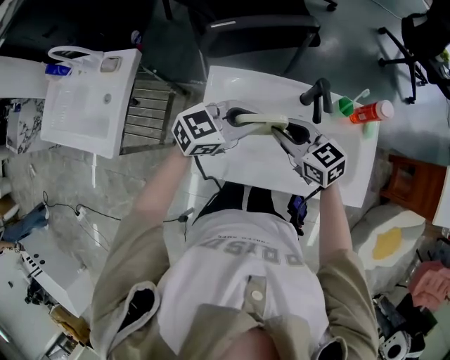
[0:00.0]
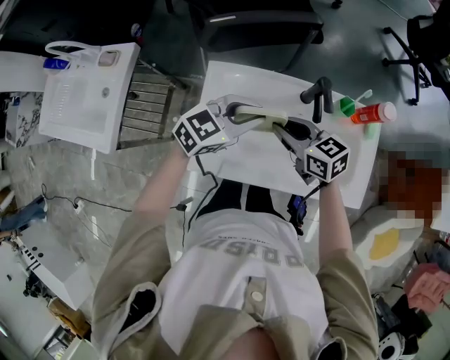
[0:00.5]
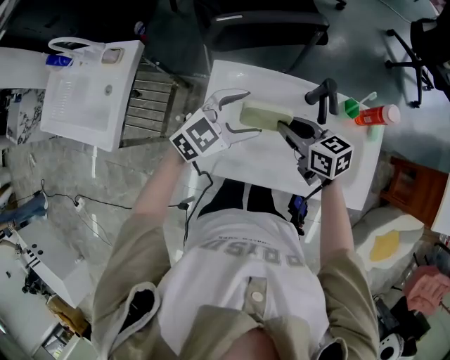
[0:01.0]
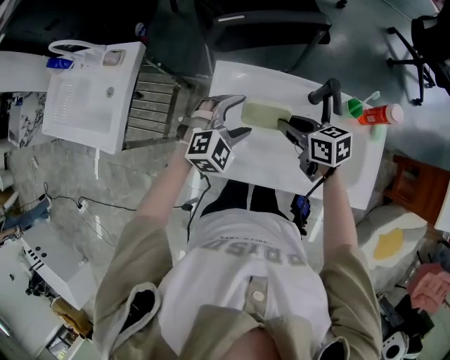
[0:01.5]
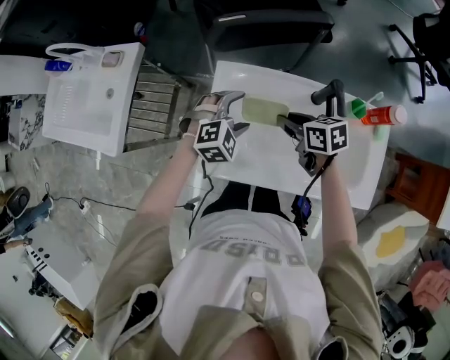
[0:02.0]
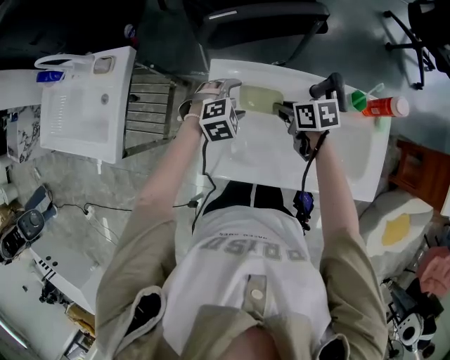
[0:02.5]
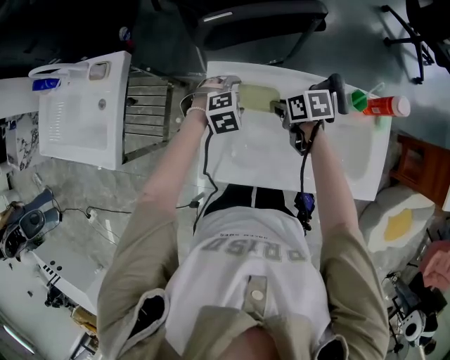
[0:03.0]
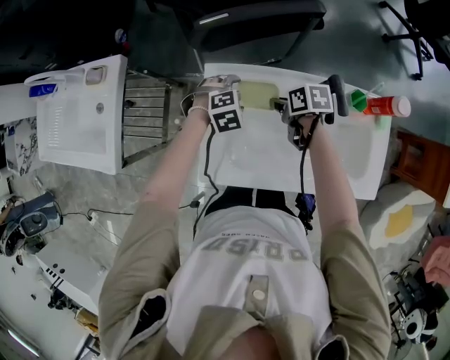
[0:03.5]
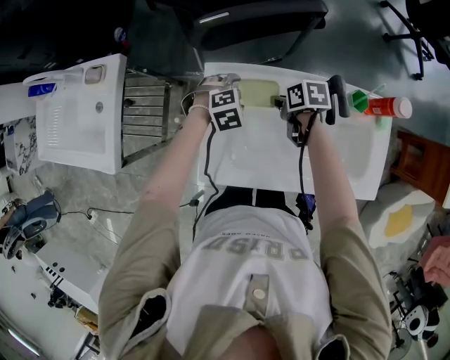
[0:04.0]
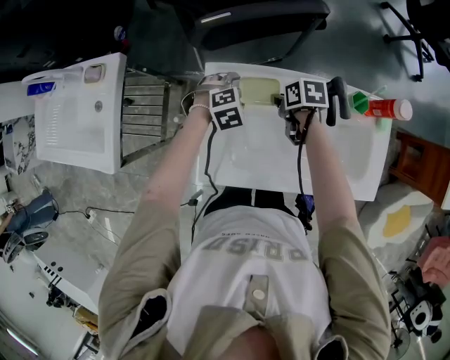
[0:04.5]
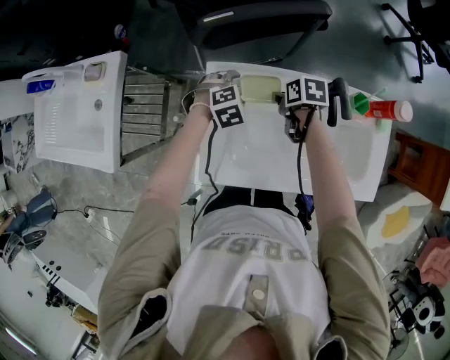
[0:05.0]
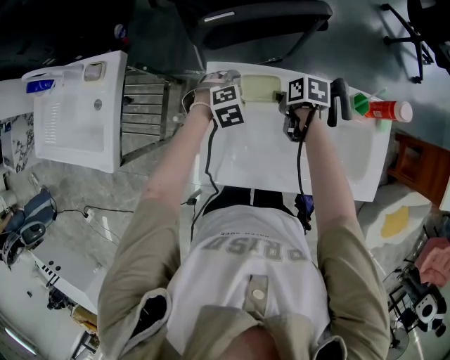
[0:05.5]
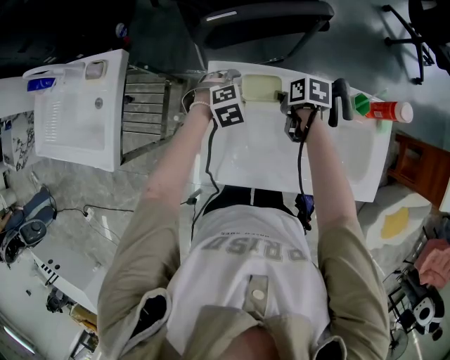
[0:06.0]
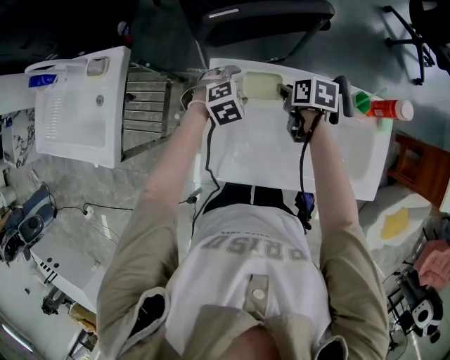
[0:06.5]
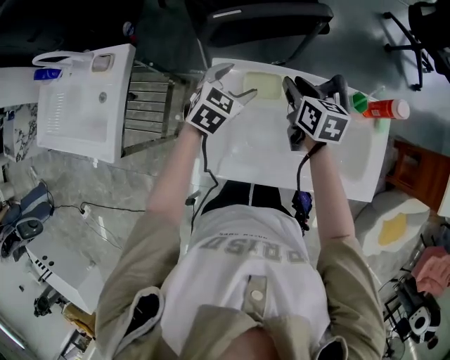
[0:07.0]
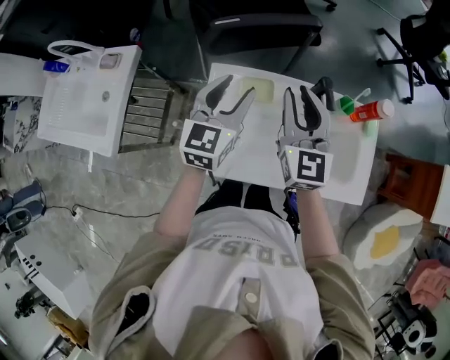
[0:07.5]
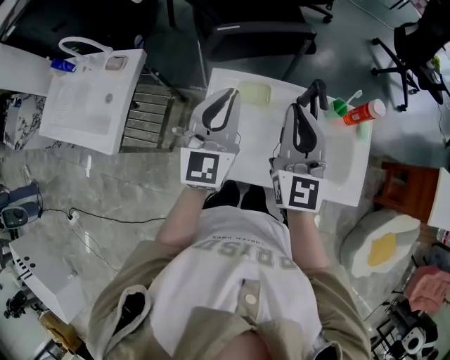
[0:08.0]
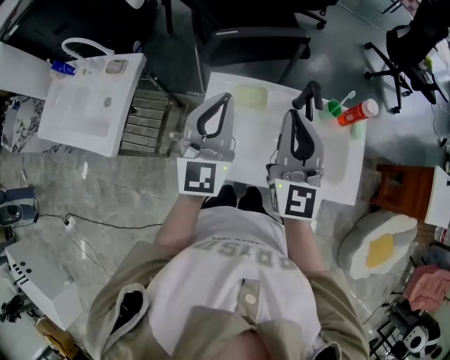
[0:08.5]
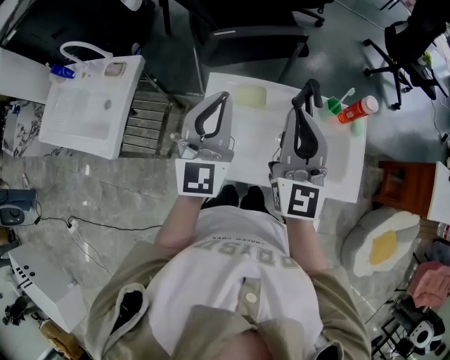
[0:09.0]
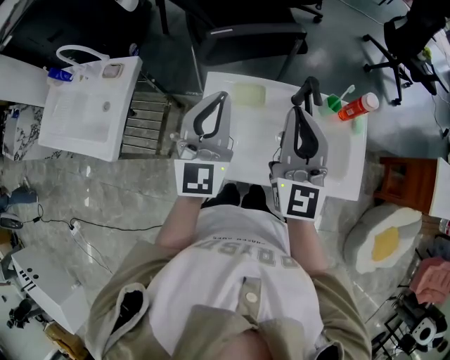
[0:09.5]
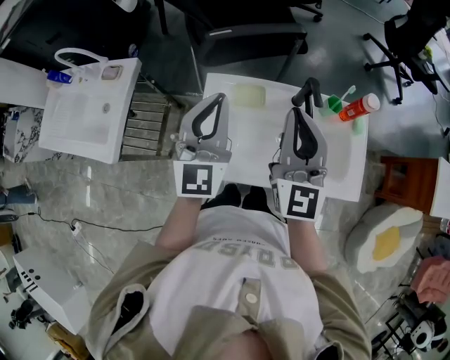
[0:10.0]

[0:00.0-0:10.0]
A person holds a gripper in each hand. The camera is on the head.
0:00.0 to 0:02.0: The right gripper shifts some 10 cm downward, and turns by roughly 30 degrees. Meanwhile the left gripper travels downward by about 15 cm, tips its fingers downward by roughly 30 degrees, and opens its fingers.
0:02.0 to 0:04.0: The grippers both shift downward and forward by some 10 cm. The right gripper rotates some 30 degrees. The left gripper rotates some 20 degrees.
0:04.0 to 0:06.0: The grippers stay close to where they were, moving slightly.
0:06.0 to 0:08.0: The two grippers go roughly 35 cm upward. The right gripper tilts its fingers some 60 degrees upward; the left gripper tilts its fingers some 70 degrees upward, and closes its fingers.
0:08.0 to 0:10.0: There are only small adjustments of the grippers.

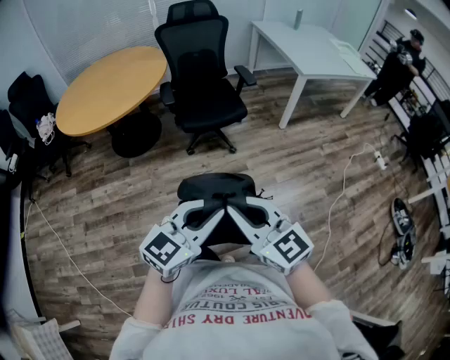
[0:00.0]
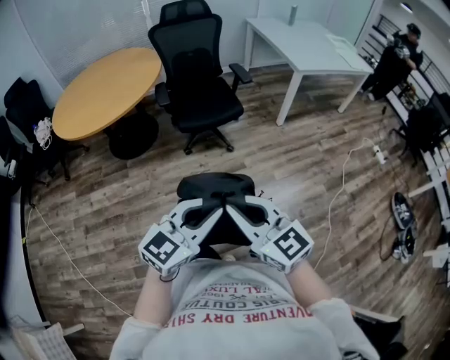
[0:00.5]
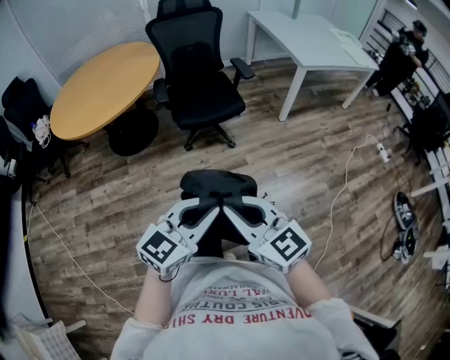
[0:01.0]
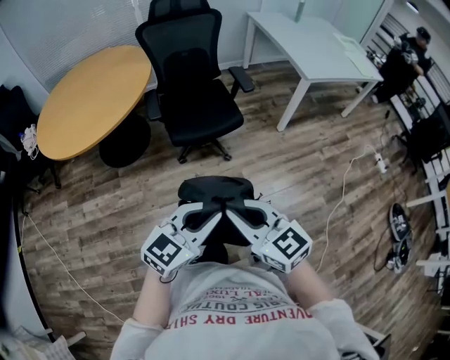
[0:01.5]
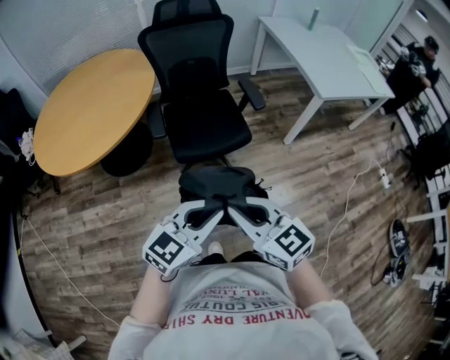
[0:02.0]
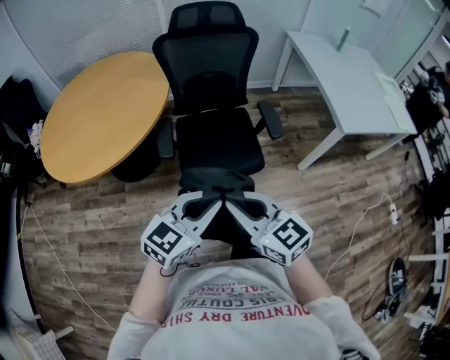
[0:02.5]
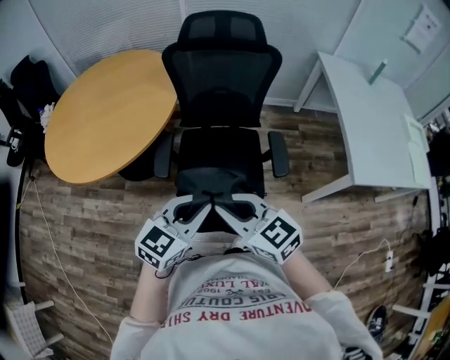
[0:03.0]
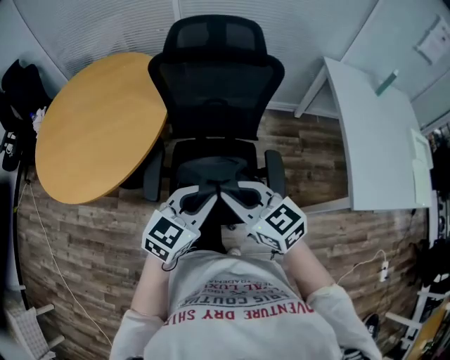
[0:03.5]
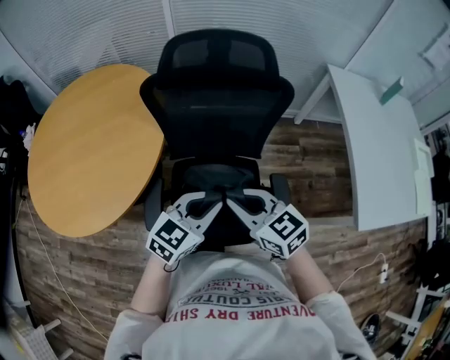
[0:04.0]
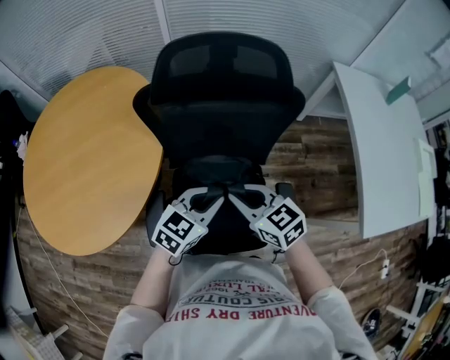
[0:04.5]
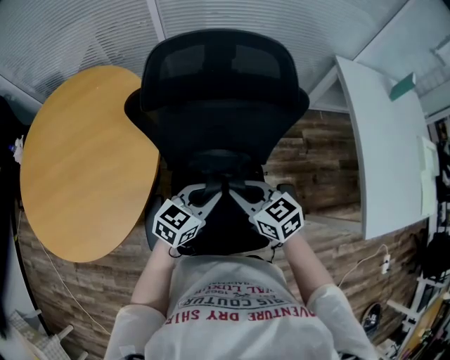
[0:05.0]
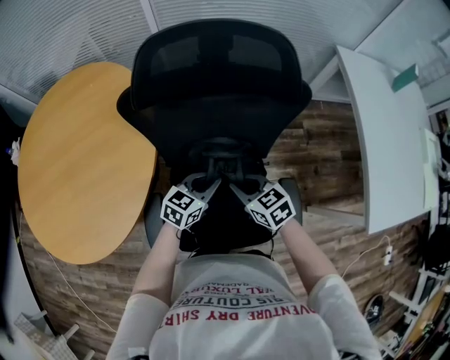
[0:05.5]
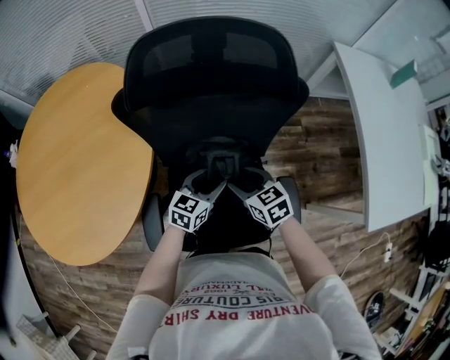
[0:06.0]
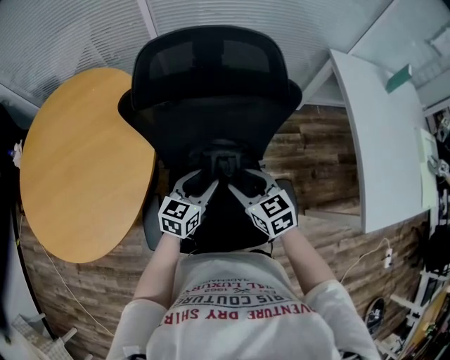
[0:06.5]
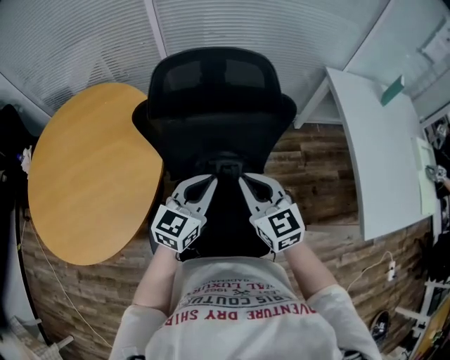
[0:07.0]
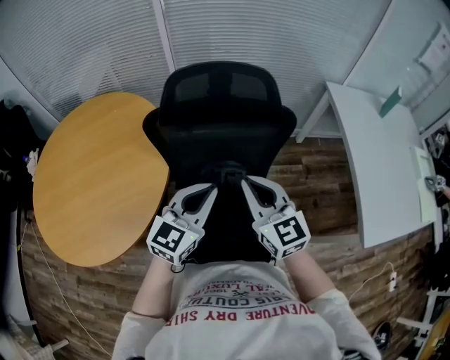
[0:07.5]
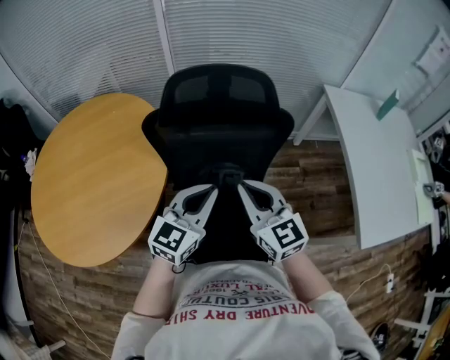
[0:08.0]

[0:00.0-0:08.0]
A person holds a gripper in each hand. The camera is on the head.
0:00.0 to 0:02.0: The grippers both shift forward by about 30 cm.
0:02.0 to 0:04.0: Both grippers are carried forward, approximately 60 cm. The left gripper turns by approximately 20 degrees, while the right gripper turns by some 20 degrees.
0:04.0 to 0:06.0: The grippers both shift downward and forward by roughly 25 cm. The left gripper opens its fingers. Meanwhile the right gripper rotates some 20 degrees, and opens its fingers.
0:06.0 to 0:08.0: Both grippers travel together upward, roughly 25 cm. The left gripper changes its angle by about 30 degrees, and closes. Meanwhile the right gripper points its fingers some 30 degrees further upward, and closes.

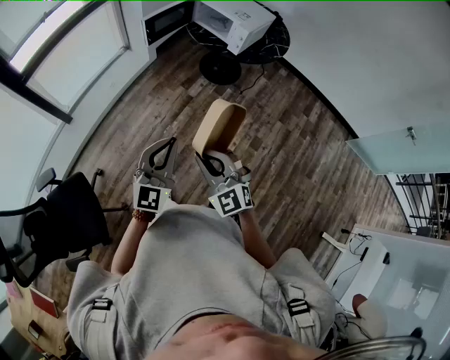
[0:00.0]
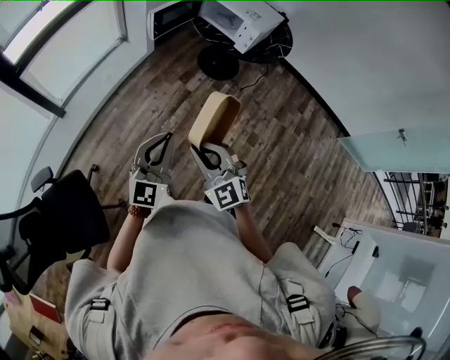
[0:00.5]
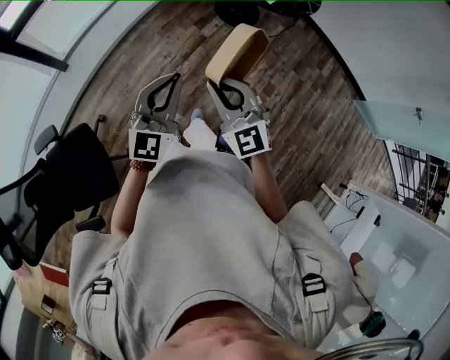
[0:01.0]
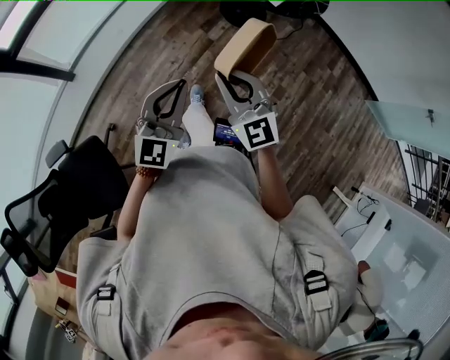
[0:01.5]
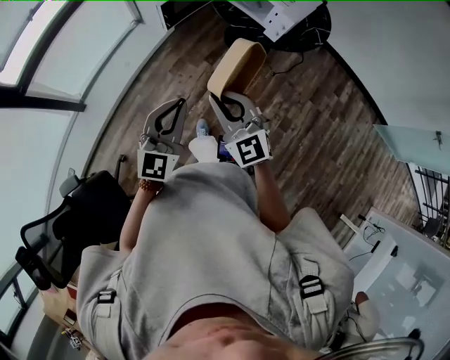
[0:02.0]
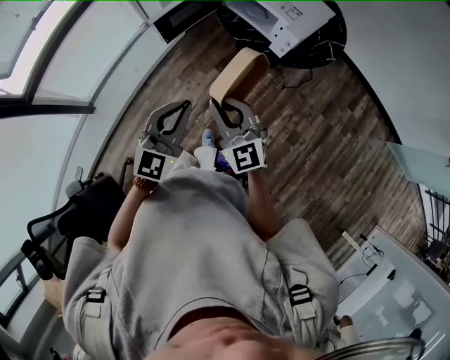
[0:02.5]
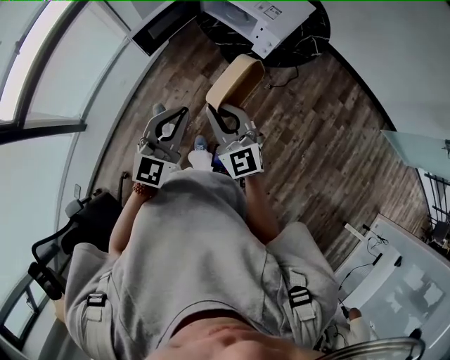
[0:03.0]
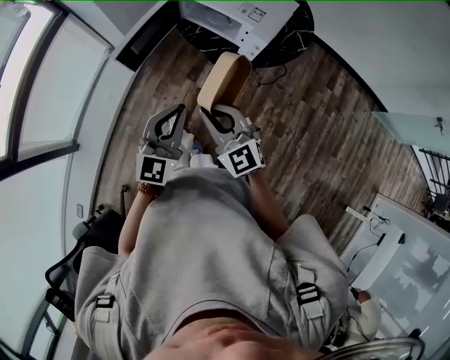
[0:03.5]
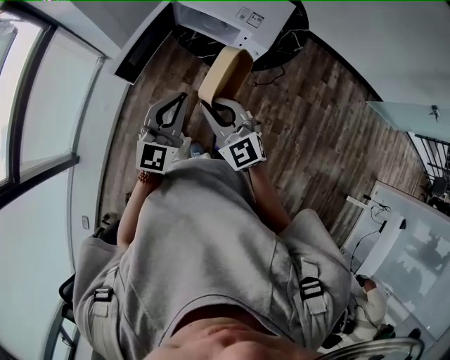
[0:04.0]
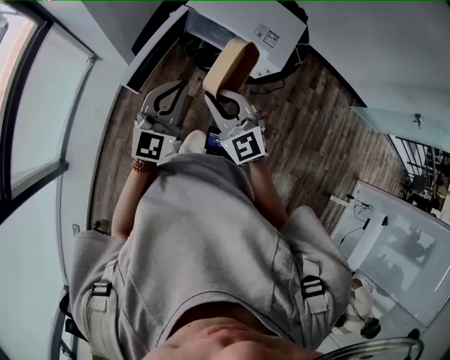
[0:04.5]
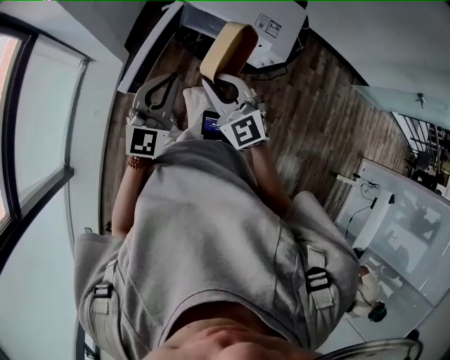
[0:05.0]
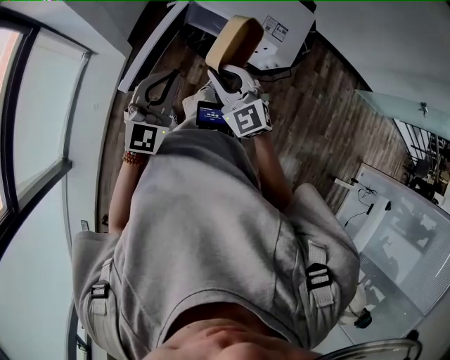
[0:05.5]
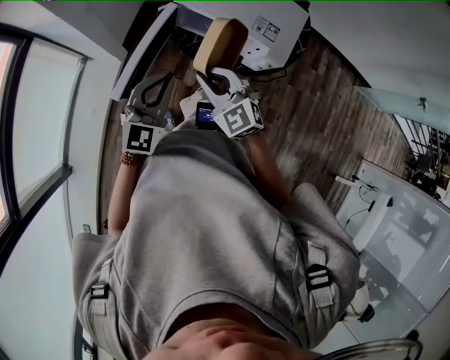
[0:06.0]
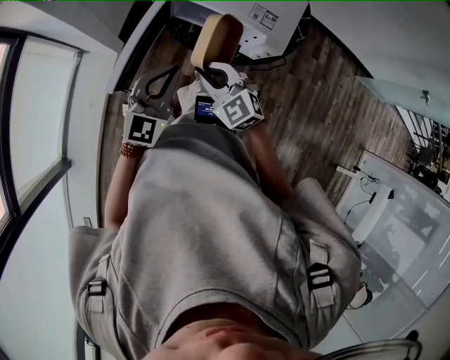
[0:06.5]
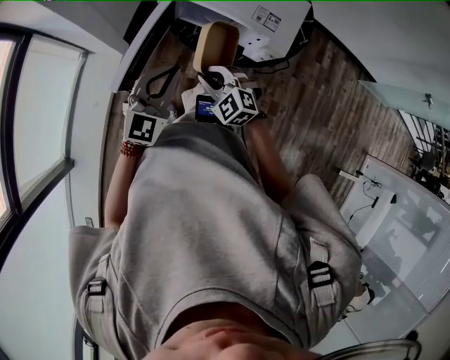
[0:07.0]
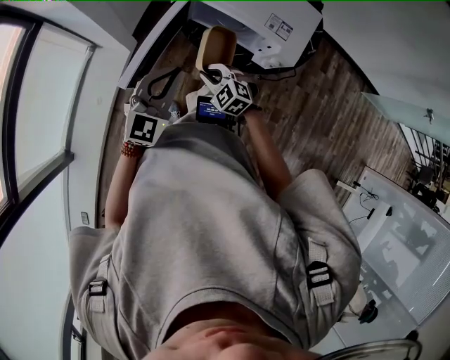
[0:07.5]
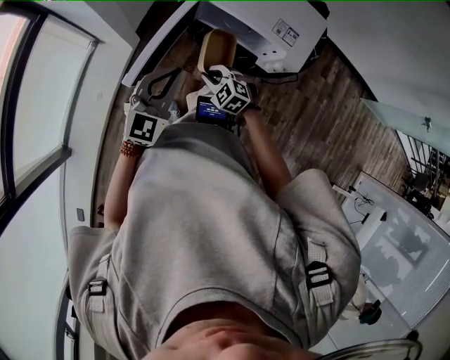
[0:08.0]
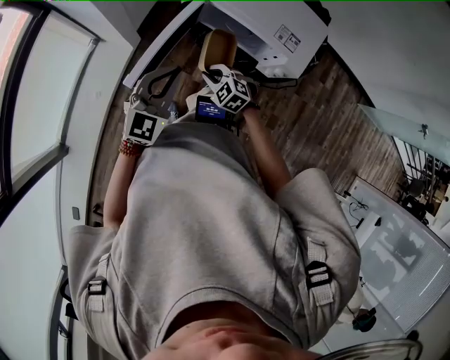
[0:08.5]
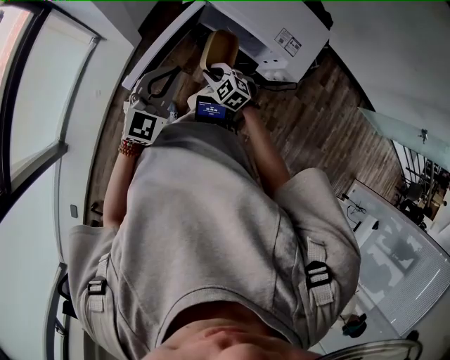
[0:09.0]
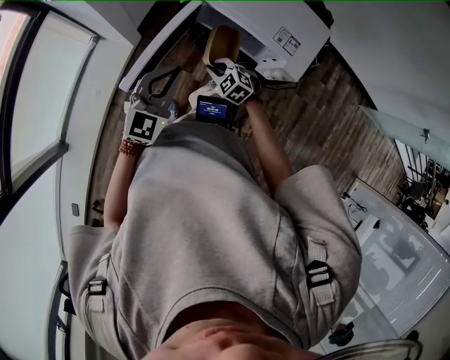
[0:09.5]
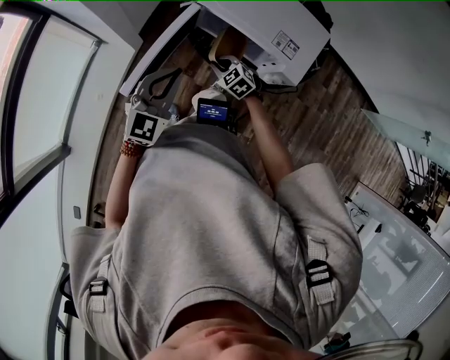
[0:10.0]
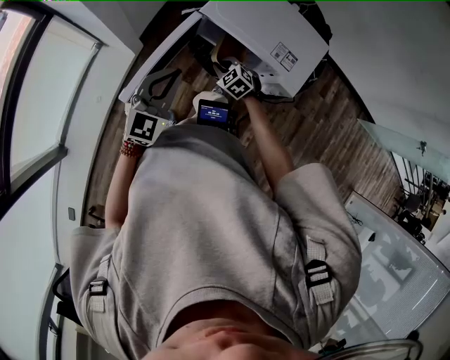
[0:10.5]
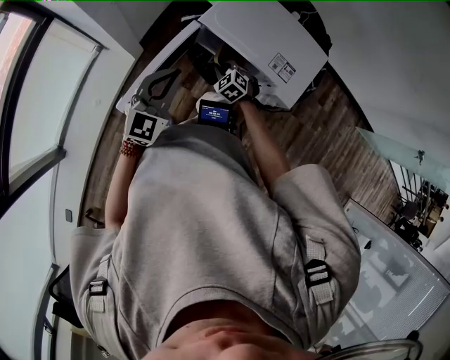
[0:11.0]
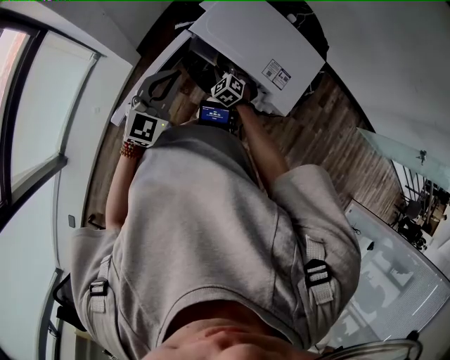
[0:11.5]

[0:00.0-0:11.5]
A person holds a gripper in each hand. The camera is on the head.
0:00.0 to 0:02.0: Both grippers travel together forward, about 25 cm.
0:02.0 to 0:04.0: Both grippers move forward, some 25 cm.
0:04.0 to 0:06.0: The left gripper shifts some 20 cm forward and to the left. Meanwhile the right gripper moves forward, some 20 cm.
0:06.0 to 0:07.5: The right gripper moves downward, about 15 cm, and rotates some 20 degrees.
0:07.5 to 0:09.5: The right gripper shifts approximately 5 cm forward.
0:09.5 to 0:11.5: The right gripper moves forward and to the right, some 15 cm. The left gripper heads forward, covering approximately 10 cm.
